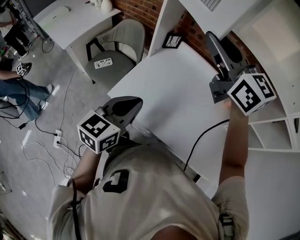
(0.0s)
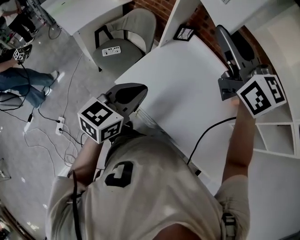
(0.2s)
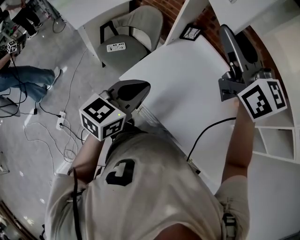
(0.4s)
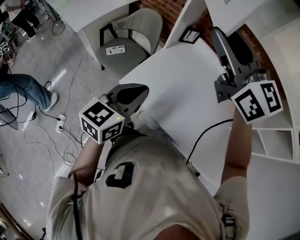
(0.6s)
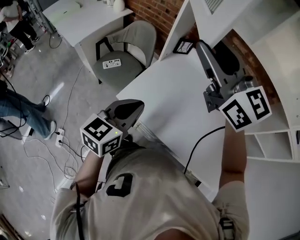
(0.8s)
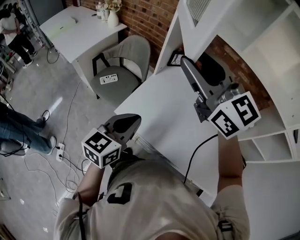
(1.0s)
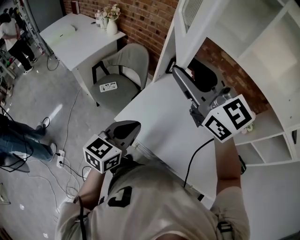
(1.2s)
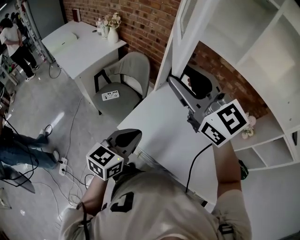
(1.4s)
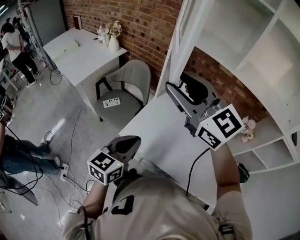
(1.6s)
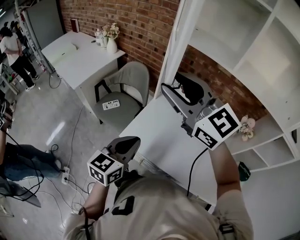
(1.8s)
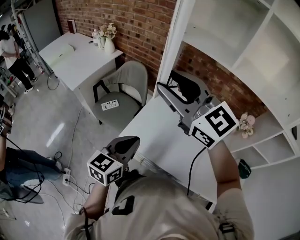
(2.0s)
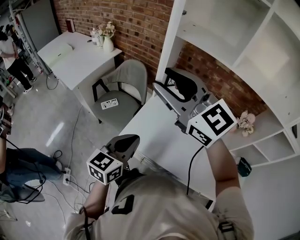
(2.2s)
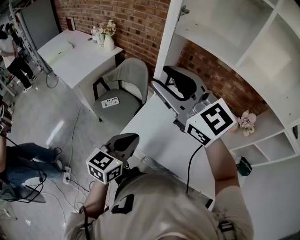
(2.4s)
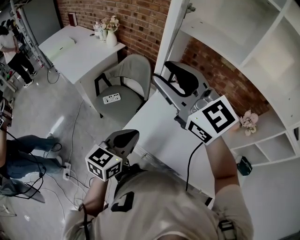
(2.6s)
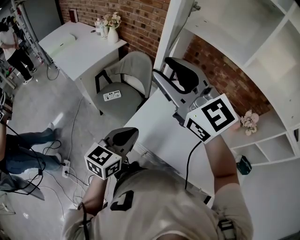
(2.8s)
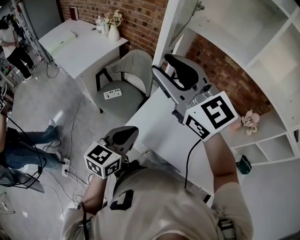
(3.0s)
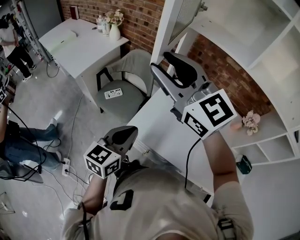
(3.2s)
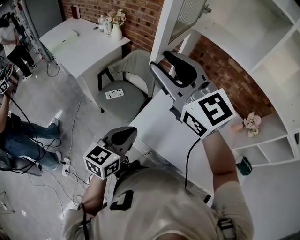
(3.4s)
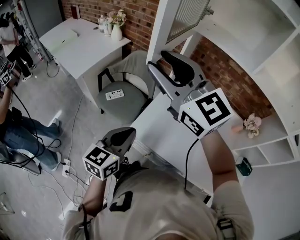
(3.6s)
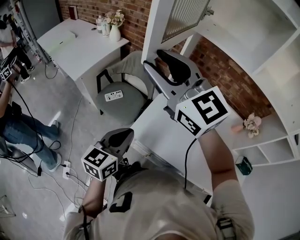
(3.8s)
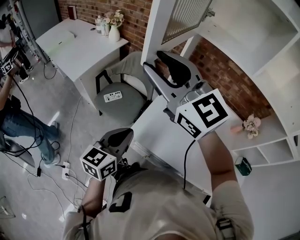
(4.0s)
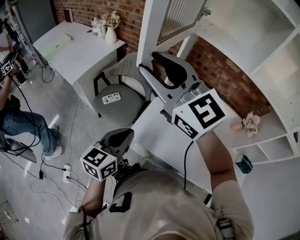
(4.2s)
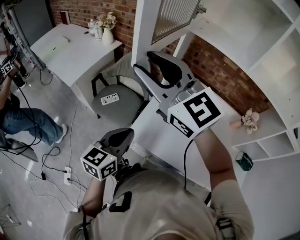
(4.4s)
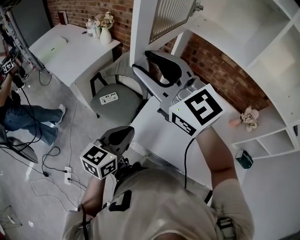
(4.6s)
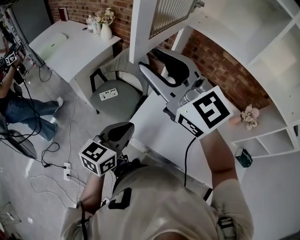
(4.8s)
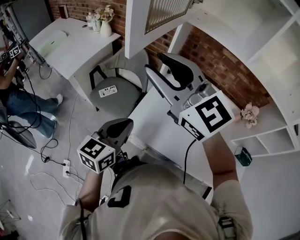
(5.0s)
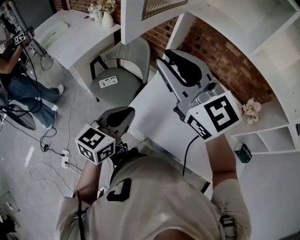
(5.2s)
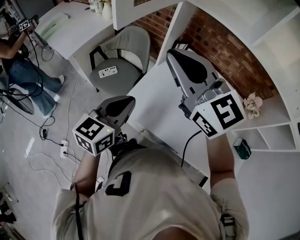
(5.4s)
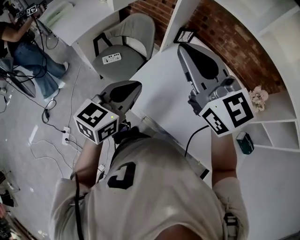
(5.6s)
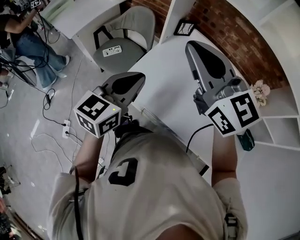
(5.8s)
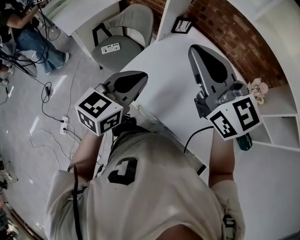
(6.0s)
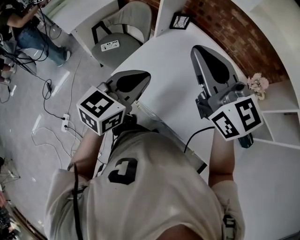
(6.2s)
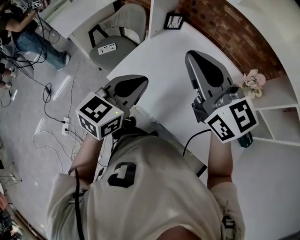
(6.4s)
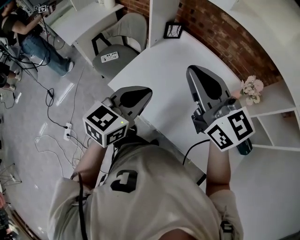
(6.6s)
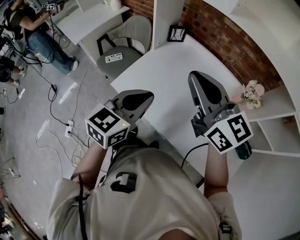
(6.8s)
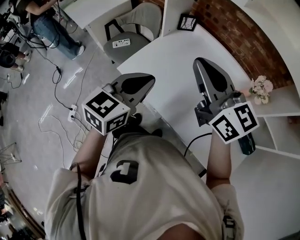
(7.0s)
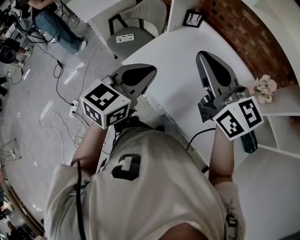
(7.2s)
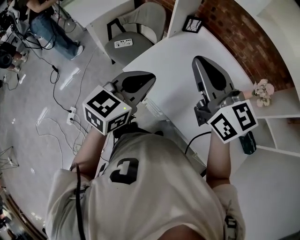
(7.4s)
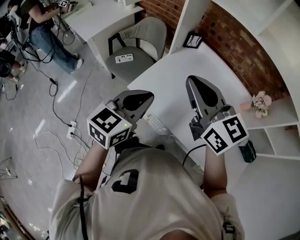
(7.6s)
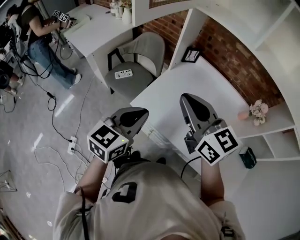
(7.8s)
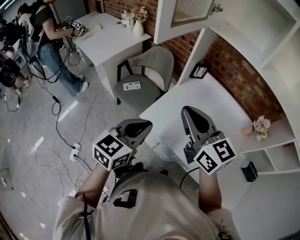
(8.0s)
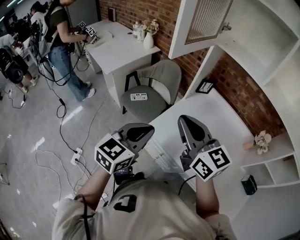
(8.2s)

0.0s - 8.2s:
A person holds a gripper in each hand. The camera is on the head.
0.0s - 1.6s: The right gripper heads to the left, covering some 15 cm; the left gripper travels to the left by roughly 5 cm.
1.6s - 3.2s: The right gripper is displaced to the left by some 10 cm. Meanwhile the left gripper travels to the left by some 5 cm.
3.2s - 5.0s: There are only small adjustments of the grippers.
5.0s - 6.6s: The right gripper travels to the right and backward by about 25 cm, turns by about 20 degrees, and closes up. Meanwhile the left gripper moves to the right, some 20 cm.
6.6s - 8.2s: The two grippers go approximately 20 cm to the left.

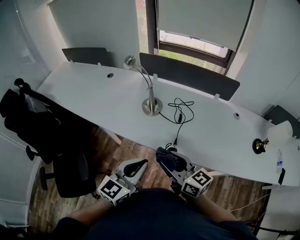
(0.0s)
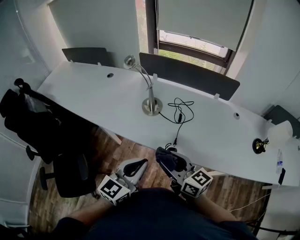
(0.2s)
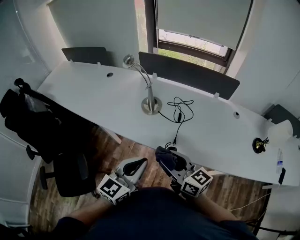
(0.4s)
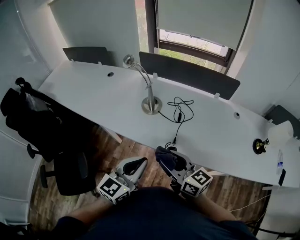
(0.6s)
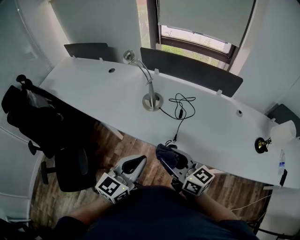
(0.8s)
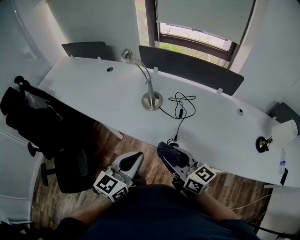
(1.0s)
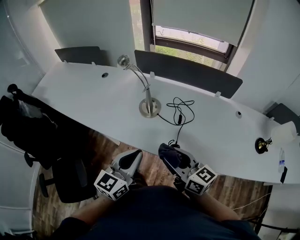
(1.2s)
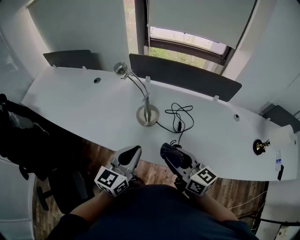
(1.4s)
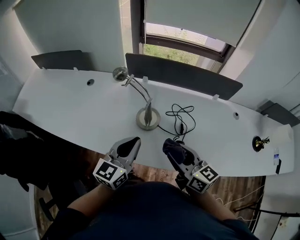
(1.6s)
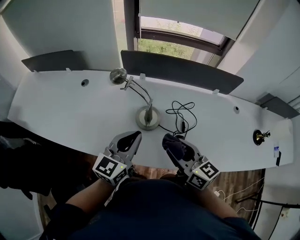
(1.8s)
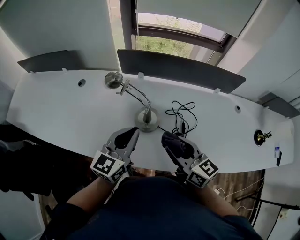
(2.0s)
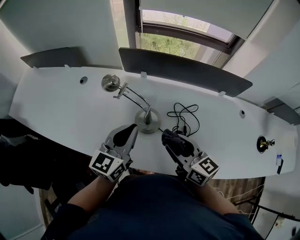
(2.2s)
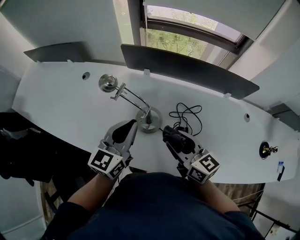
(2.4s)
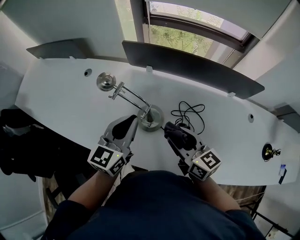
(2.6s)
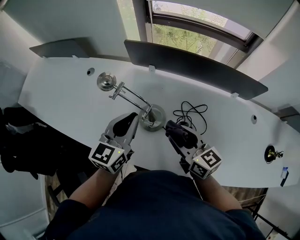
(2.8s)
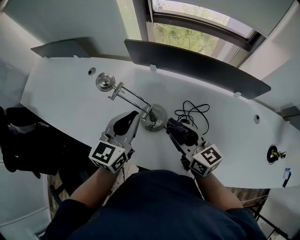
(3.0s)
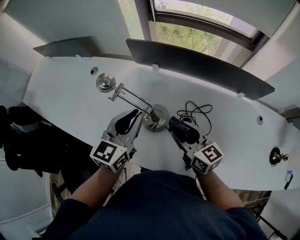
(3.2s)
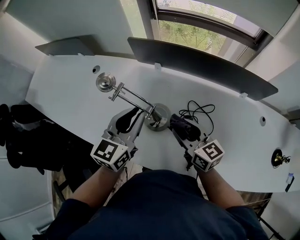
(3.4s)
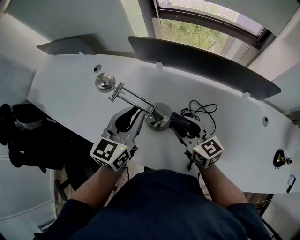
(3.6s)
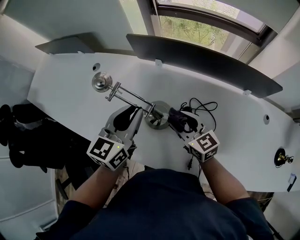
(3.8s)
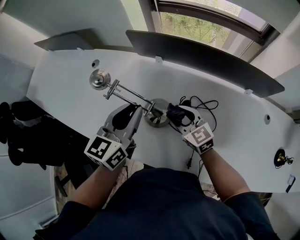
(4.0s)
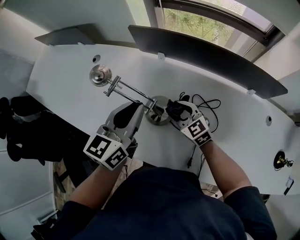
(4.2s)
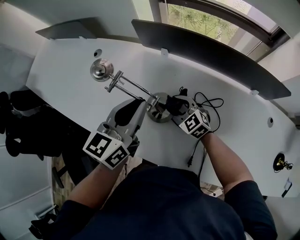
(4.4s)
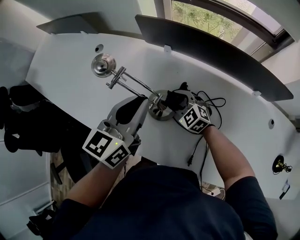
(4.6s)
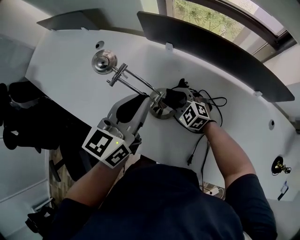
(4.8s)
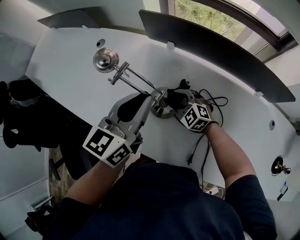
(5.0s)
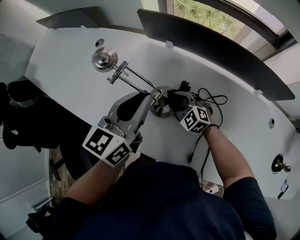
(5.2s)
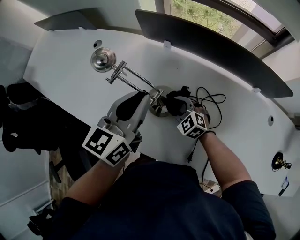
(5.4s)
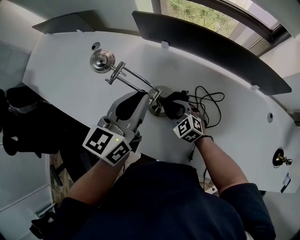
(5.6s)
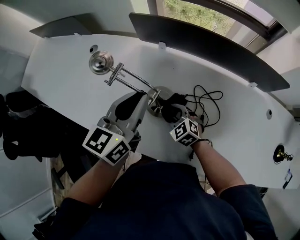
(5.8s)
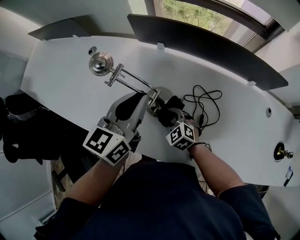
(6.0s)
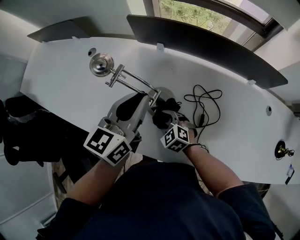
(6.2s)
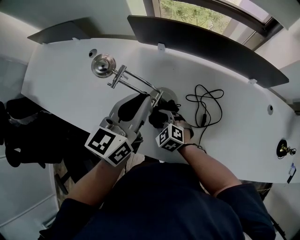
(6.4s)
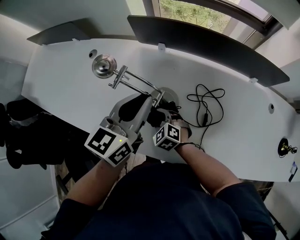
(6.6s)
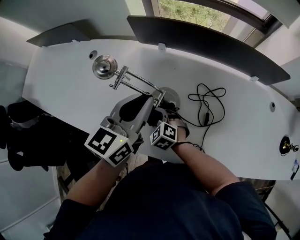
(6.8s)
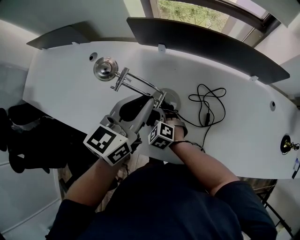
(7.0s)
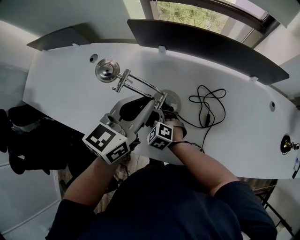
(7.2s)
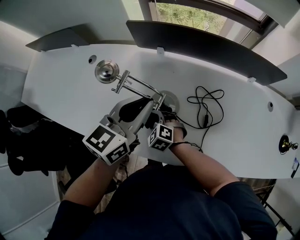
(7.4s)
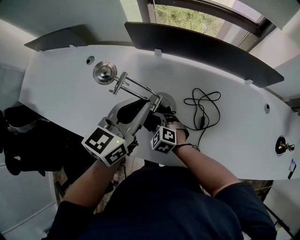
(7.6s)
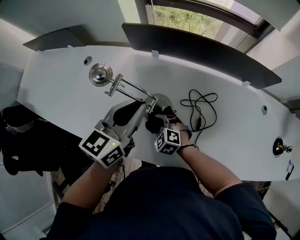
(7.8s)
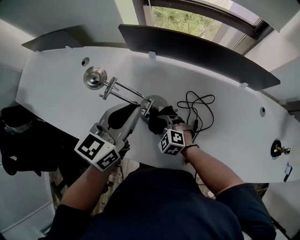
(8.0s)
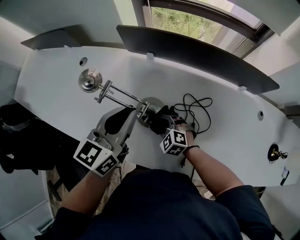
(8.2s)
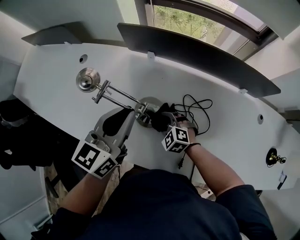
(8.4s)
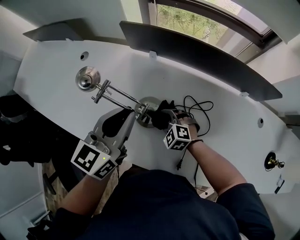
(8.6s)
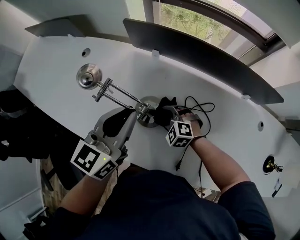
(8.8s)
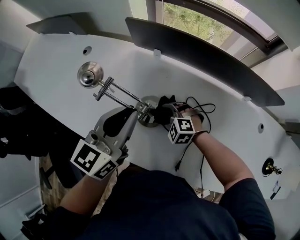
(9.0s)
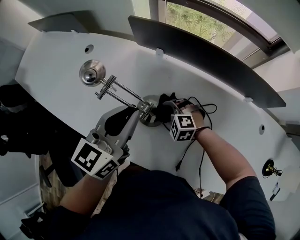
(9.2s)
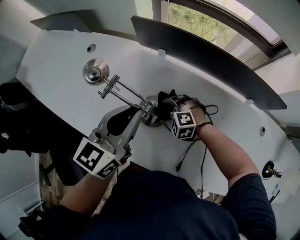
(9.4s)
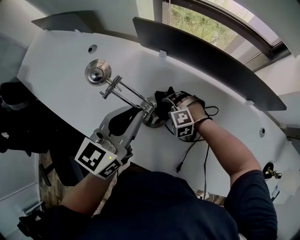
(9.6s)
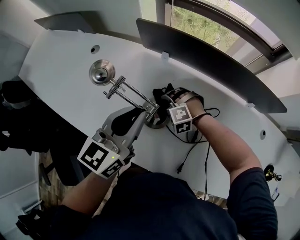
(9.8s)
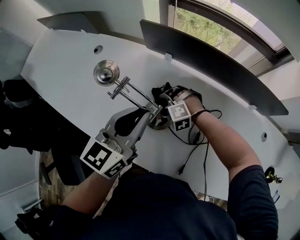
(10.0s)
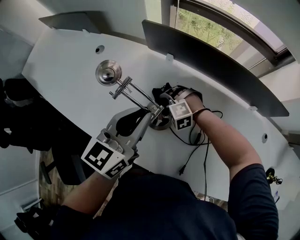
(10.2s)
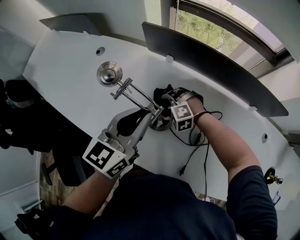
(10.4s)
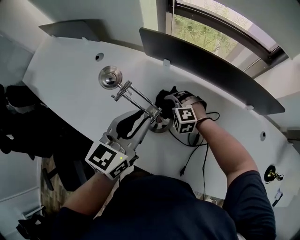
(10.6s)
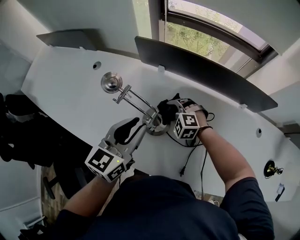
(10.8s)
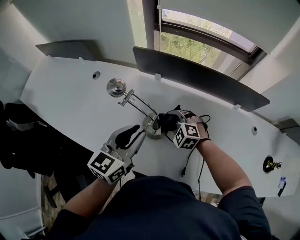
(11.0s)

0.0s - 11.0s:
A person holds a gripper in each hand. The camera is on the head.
0.0s - 1.6s: Both grippers travel together forward, some 20 cm.
1.6s - 3.2s: The left gripper heads forward, covering some 15 cm. The right gripper heads forward and downward, covering some 20 cm.
3.2s - 4.8s: The right gripper heads downward and forward, covering some 20 cm, and twists about 50 degrees counterclockwise, seen from behind.
4.8s - 6.2s: The right gripper is displaced backward and to the left by approximately 10 cm.
7.8s - 9.4s: The right gripper travels to the right and forward by roughly 10 cm, and turns by approximately 40 degrees.
9.4s - 11.0s: The left gripper ends up approximately 5 cm from where it was, while the right gripper goes roughly 10 cm upward, and swivels some 20 degrees.

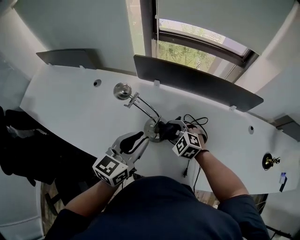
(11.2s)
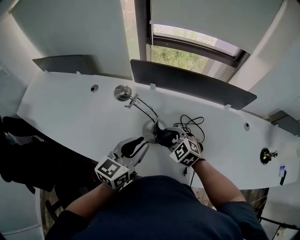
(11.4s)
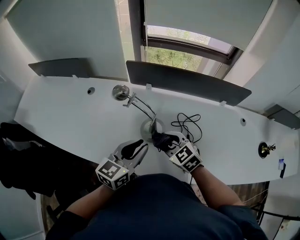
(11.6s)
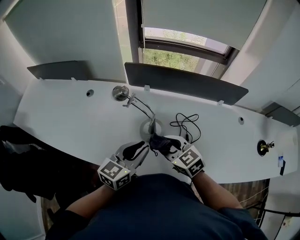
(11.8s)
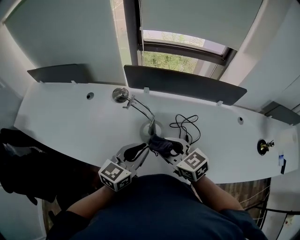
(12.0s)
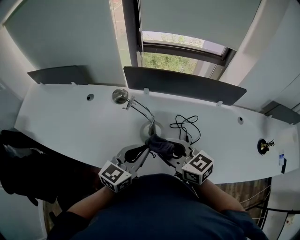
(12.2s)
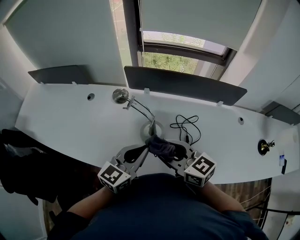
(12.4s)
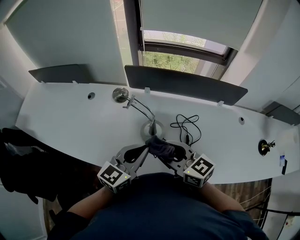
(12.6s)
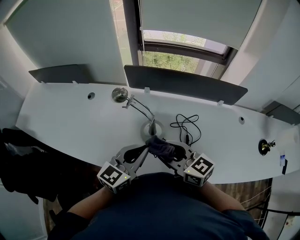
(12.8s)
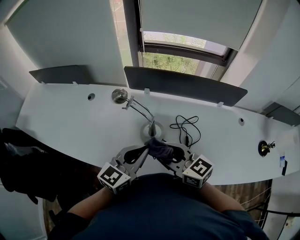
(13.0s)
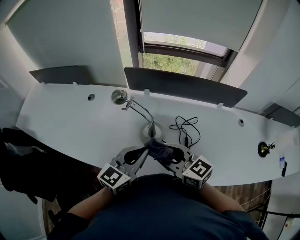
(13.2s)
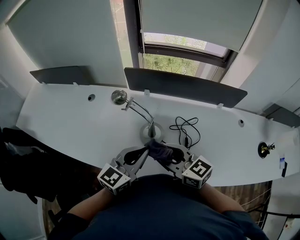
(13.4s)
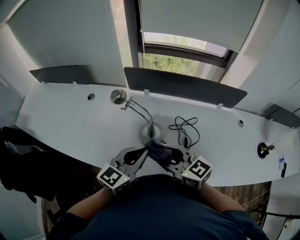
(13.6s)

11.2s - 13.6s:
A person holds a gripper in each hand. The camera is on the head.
11.2s - 12.4s: The left gripper goes about 5 cm backward, and closes up; the right gripper goes about 20 cm upward and backward, and points its fingers approximately 30 degrees further upward.
12.4s - 13.6s: The grippers make only small movements.

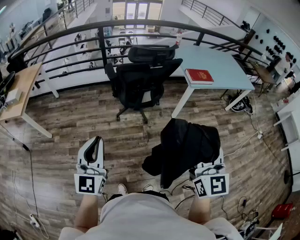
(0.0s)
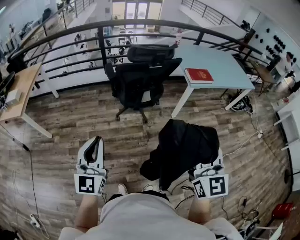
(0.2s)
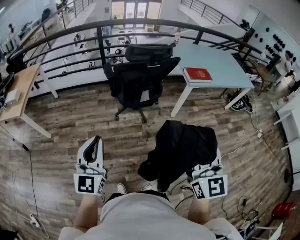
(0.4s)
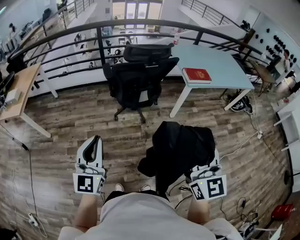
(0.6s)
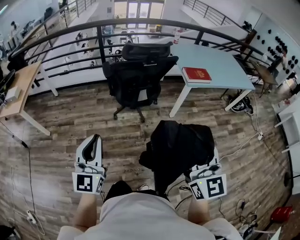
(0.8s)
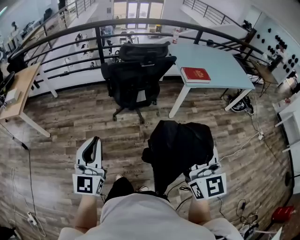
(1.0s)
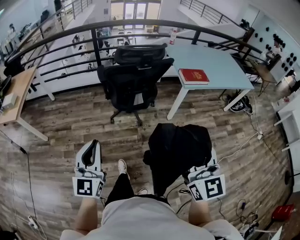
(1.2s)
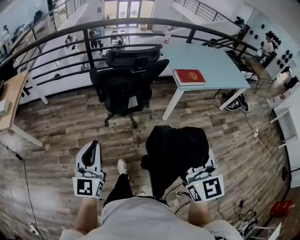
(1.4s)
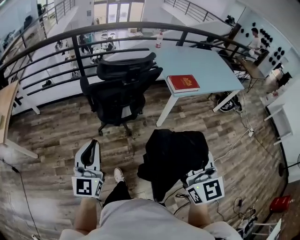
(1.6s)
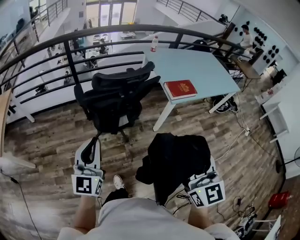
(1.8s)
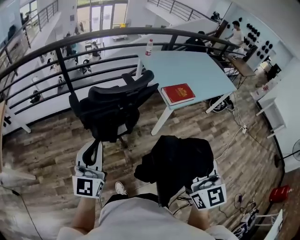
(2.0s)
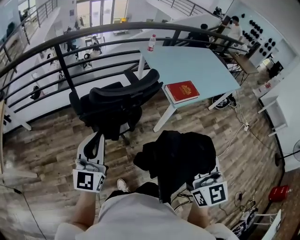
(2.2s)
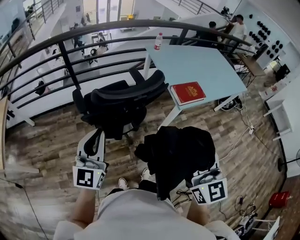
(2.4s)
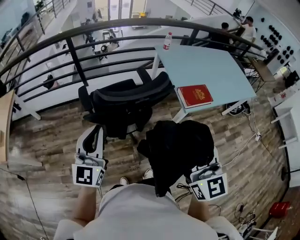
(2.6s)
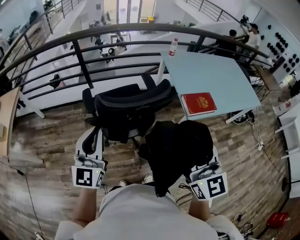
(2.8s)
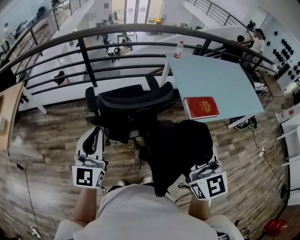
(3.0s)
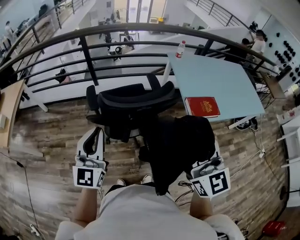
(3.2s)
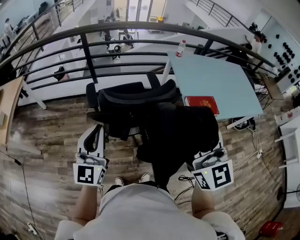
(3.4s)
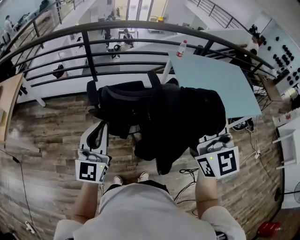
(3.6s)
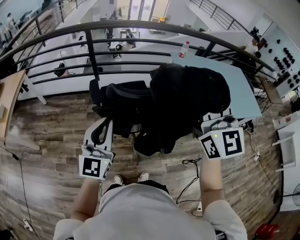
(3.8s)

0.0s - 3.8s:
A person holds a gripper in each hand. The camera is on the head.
0.0s - 1.2s: The left gripper travels to the right by some 5 cm, while the right gripper ends up some 5 cm from where it was.
1.2s - 2.6s: The grippers both shift forward by about 35 cm.
2.6s - 3.8s: The right gripper shifts roughly 20 cm upward and forward.
